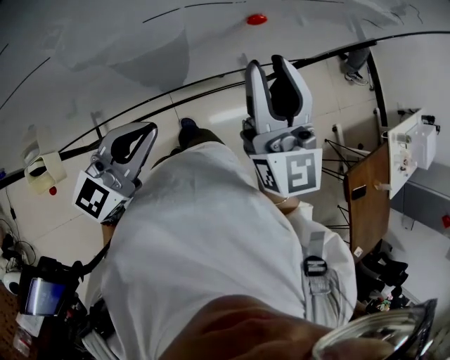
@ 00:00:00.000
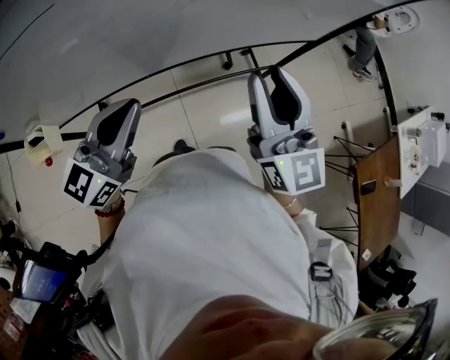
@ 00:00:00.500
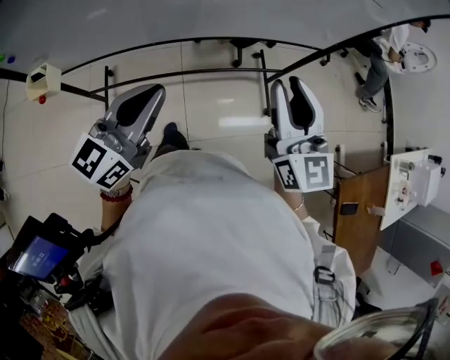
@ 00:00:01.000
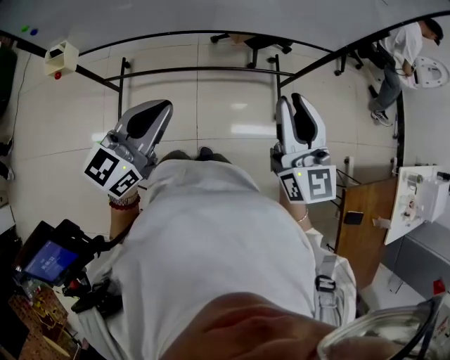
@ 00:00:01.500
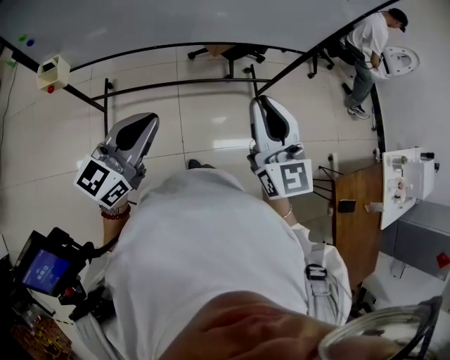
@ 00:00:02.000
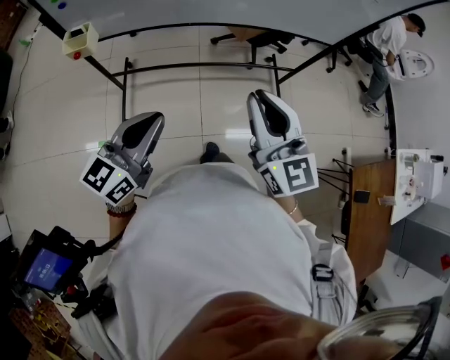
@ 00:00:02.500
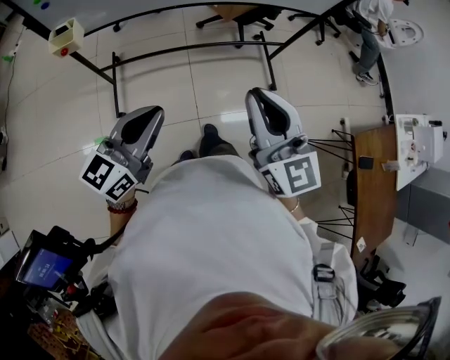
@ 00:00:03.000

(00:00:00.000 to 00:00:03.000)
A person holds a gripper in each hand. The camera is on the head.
00:00:00.000 - 00:00:01.500: The left gripper moves forward, roughly 5 cm, while the right gripper goes some 10 cm downward.
00:00:01.500 - 00:00:03.000: The two grippers go approximately 20 cm backward and to the left.

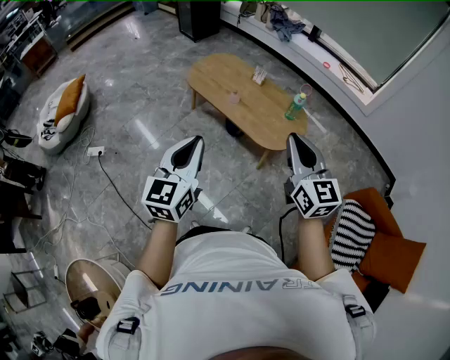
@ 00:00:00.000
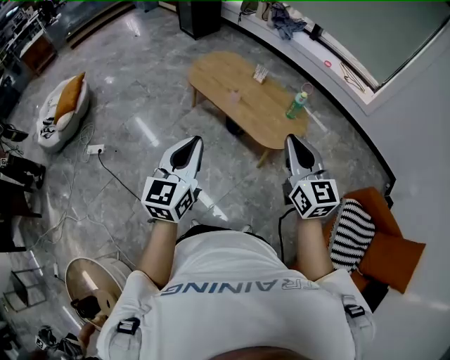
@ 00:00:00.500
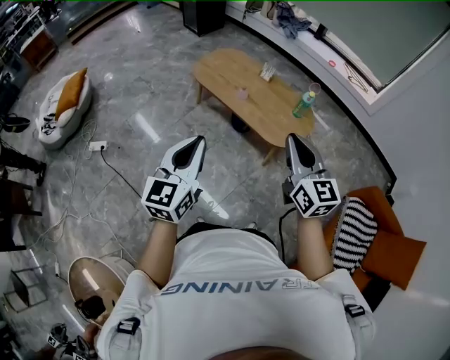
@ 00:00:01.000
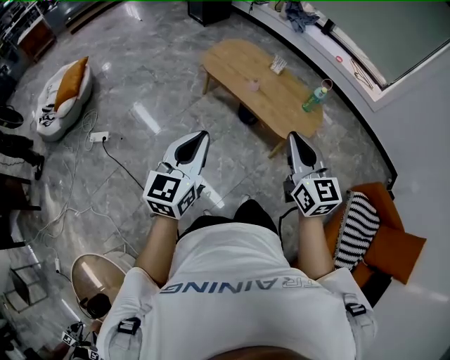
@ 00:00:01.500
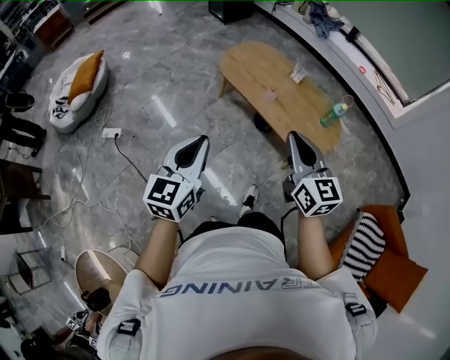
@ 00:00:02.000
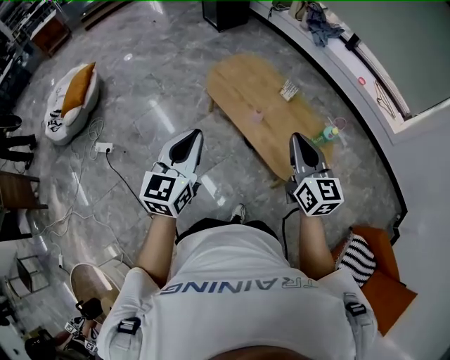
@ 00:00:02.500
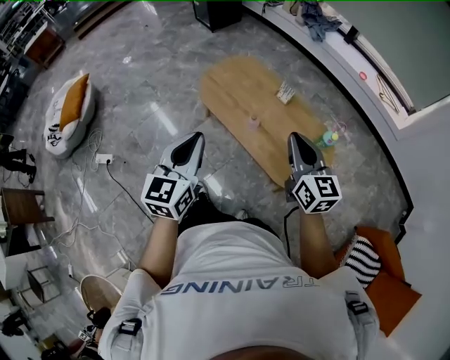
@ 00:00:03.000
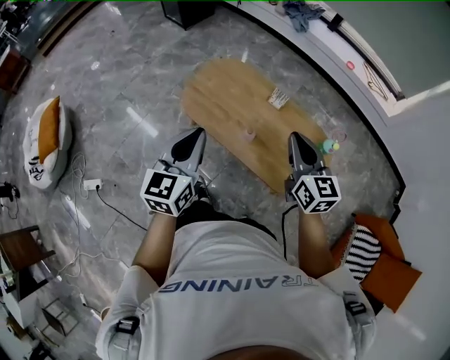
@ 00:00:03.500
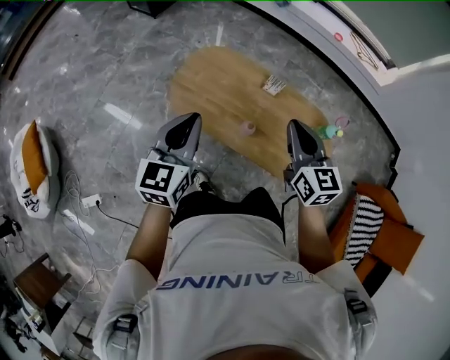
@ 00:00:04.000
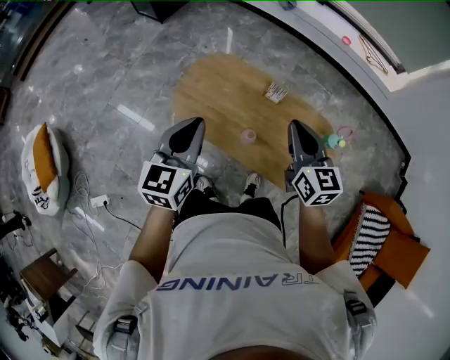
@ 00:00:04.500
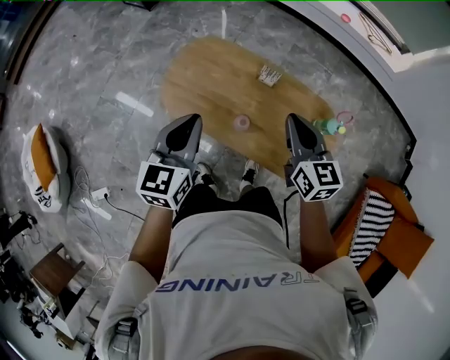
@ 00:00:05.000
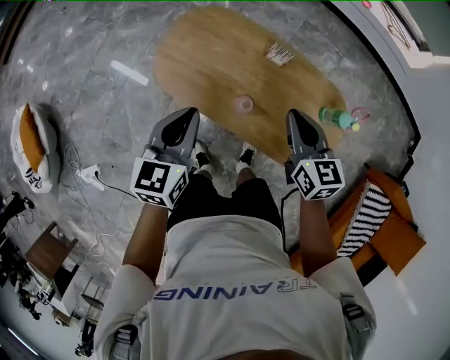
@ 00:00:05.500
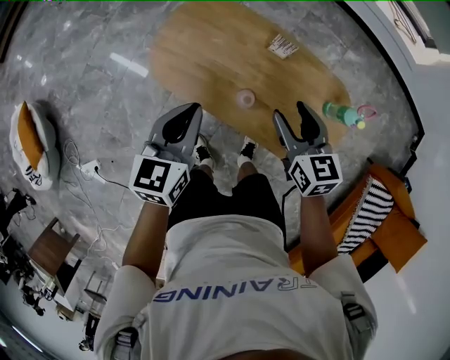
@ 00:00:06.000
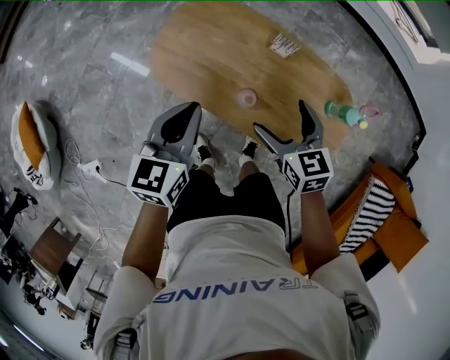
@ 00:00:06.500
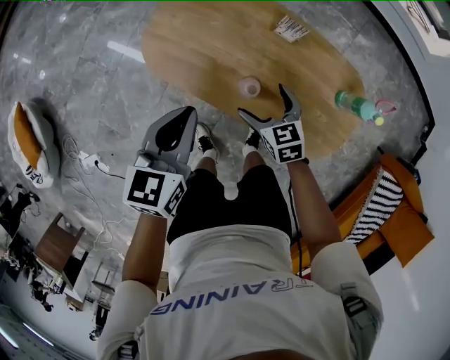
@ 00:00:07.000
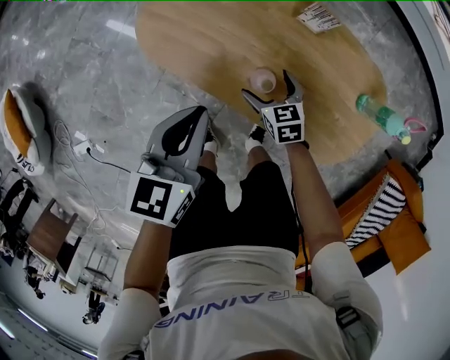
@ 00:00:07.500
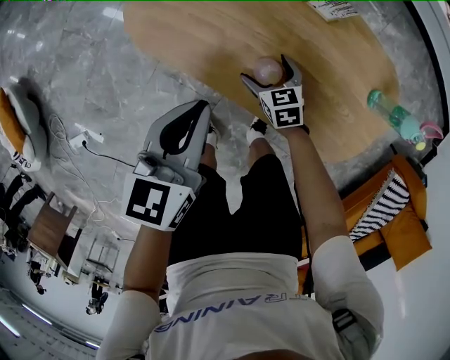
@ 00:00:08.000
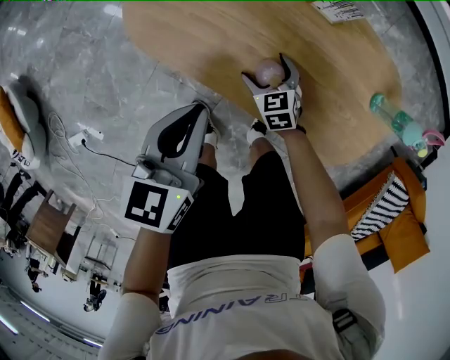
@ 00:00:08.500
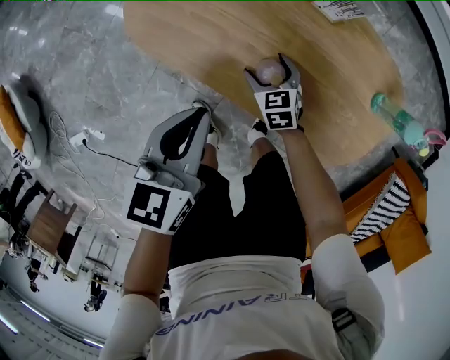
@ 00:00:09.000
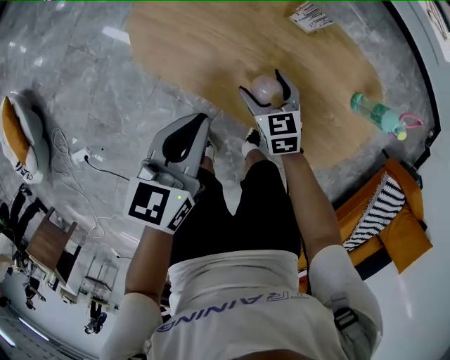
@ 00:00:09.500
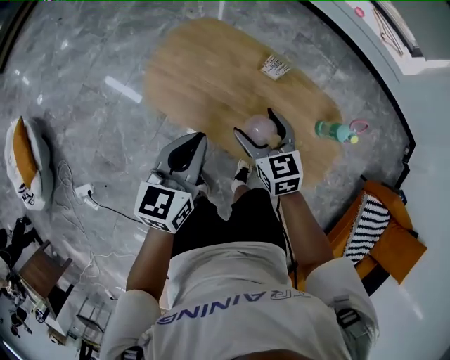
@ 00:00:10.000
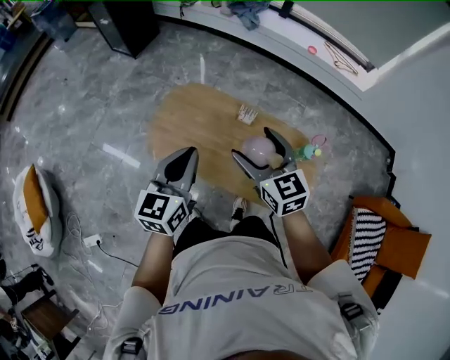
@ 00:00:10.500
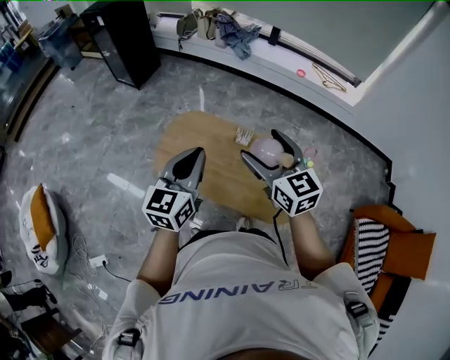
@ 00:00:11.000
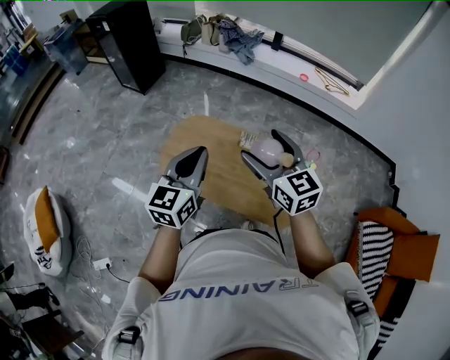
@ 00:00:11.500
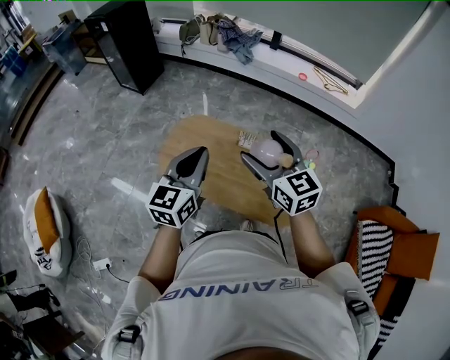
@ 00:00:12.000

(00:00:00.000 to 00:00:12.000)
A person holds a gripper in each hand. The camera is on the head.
00:00:00.000 - 00:00:02.000: The left gripper is displaced to the left and forward by approximately 15 cm; the right gripper moves to the left, forward and downward, roughly 20 cm.
00:00:02.000 - 00:00:04.000: The two grippers travel together, forward, roughly 50 cm. The right gripper swivels approximately 30 degrees.
00:00:04.000 - 00:00:06.000: The left gripper shifts roughly 20 cm downward, to the right and forward; the right gripper travels downward by approximately 15 cm, and opens up.
00:00:06.000 - 00:00:08.000: The right gripper heads downward, covering roughly 40 cm, changes its angle by about 20 degrees, and opens its fingers, while the left gripper moves downward, roughly 15 cm.
00:00:08.000 - 00:00:10.000: The right gripper is displaced upward by about 35 cm. The left gripper shifts roughly 15 cm upward.
00:00:10.000 - 00:00:12.000: The two grippers go roughly 25 cm upward. The left gripper rotates about 20 degrees. Meanwhile the right gripper changes its angle by about 20 degrees.

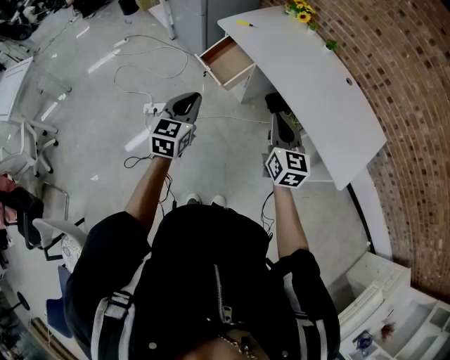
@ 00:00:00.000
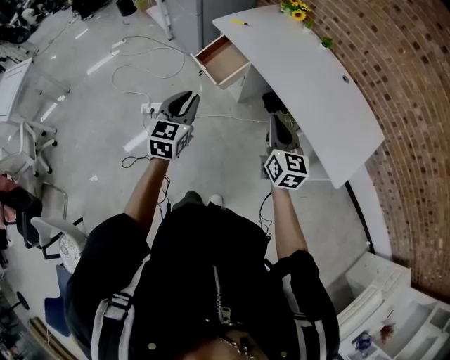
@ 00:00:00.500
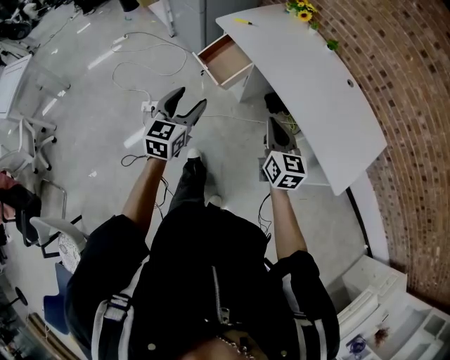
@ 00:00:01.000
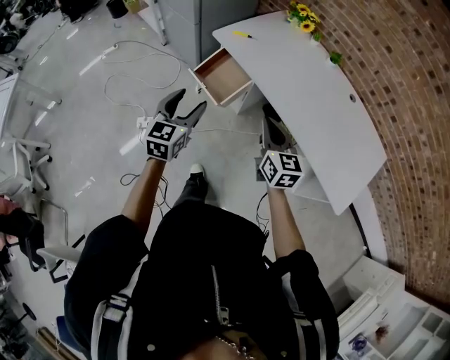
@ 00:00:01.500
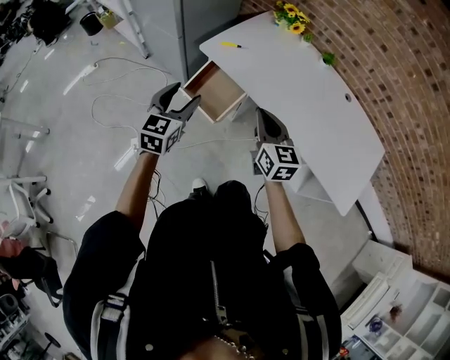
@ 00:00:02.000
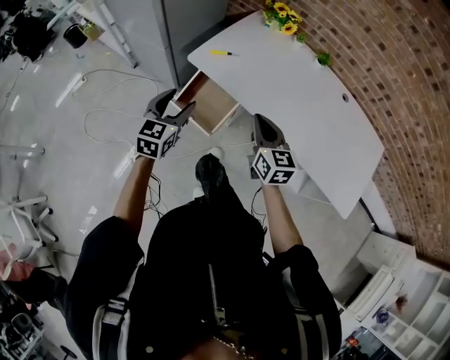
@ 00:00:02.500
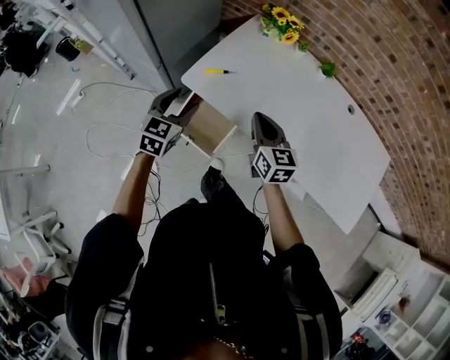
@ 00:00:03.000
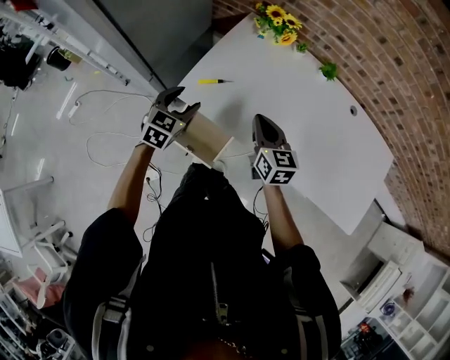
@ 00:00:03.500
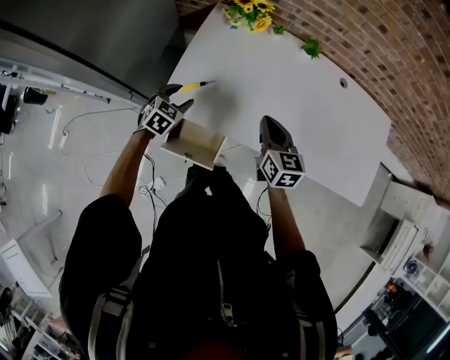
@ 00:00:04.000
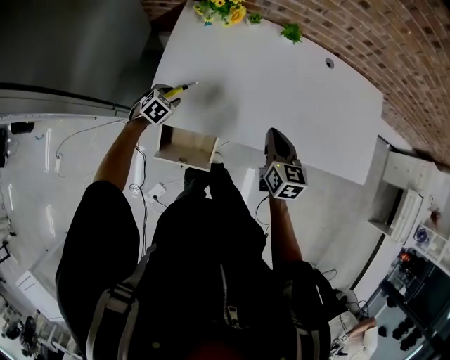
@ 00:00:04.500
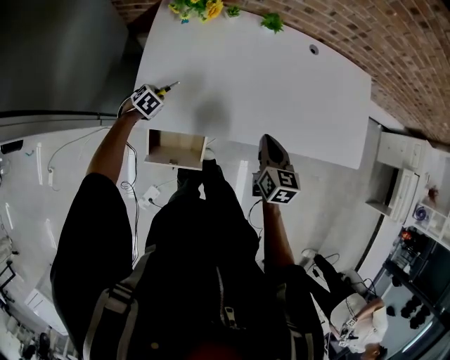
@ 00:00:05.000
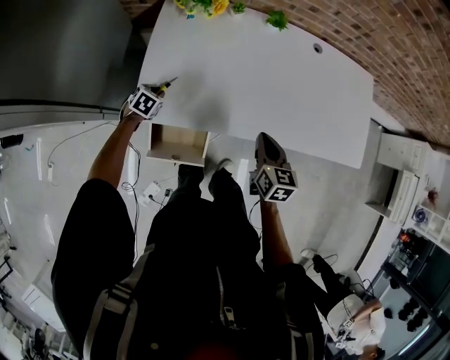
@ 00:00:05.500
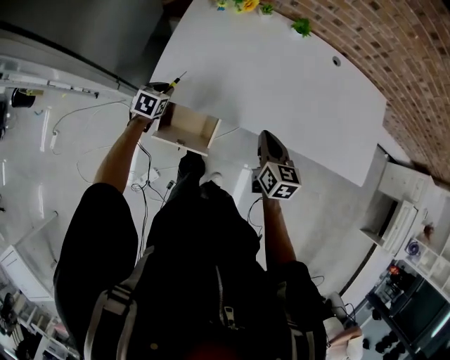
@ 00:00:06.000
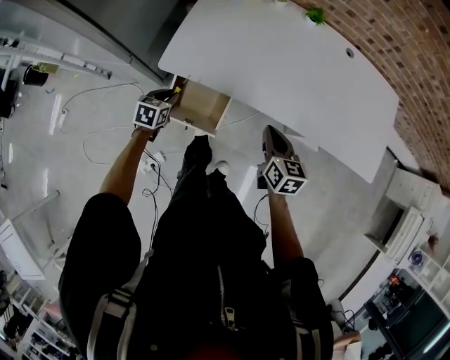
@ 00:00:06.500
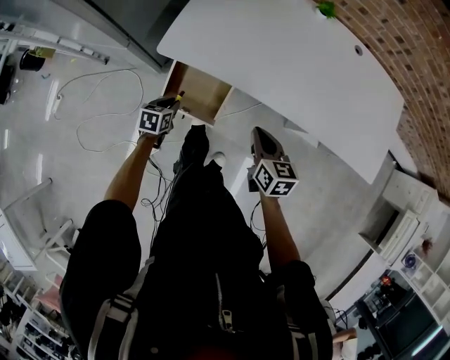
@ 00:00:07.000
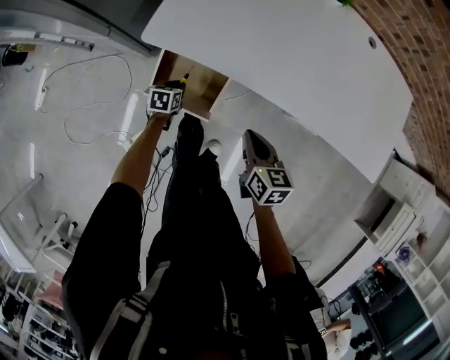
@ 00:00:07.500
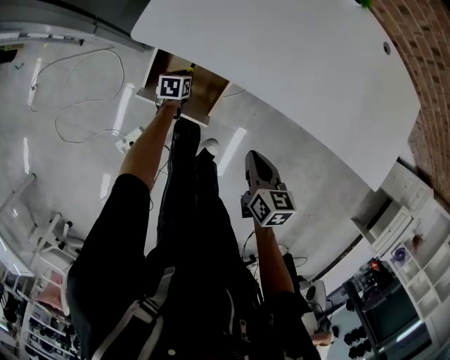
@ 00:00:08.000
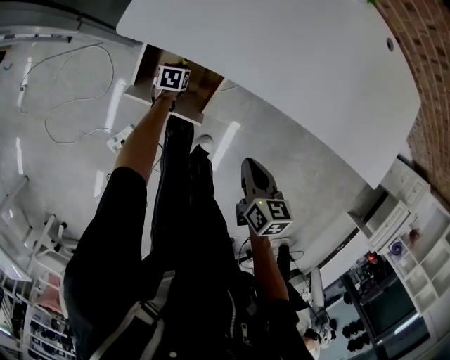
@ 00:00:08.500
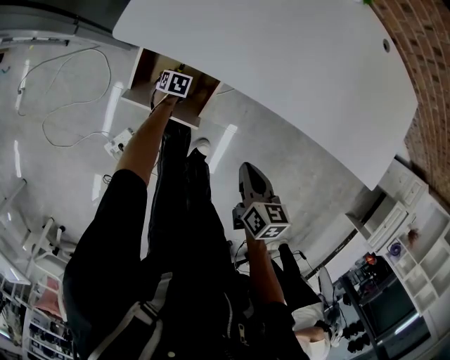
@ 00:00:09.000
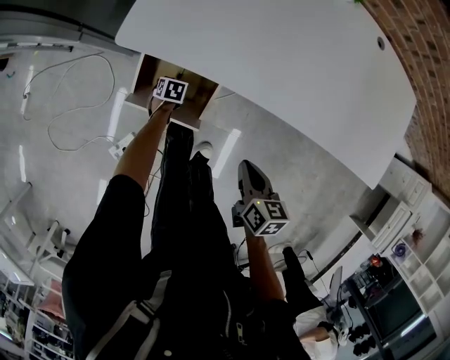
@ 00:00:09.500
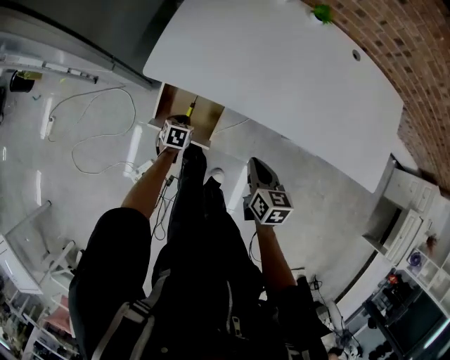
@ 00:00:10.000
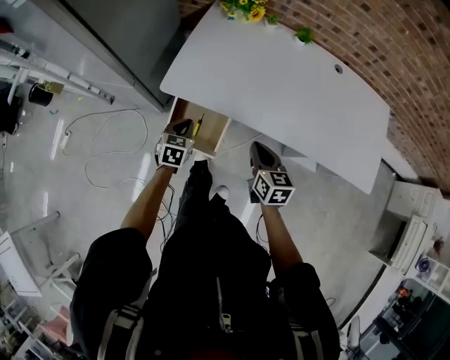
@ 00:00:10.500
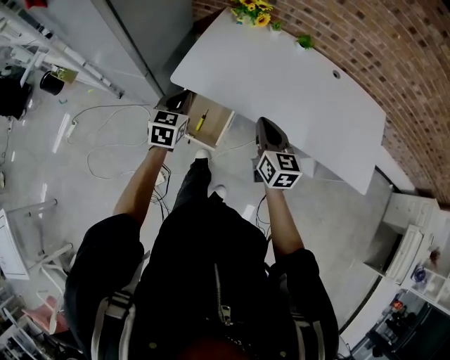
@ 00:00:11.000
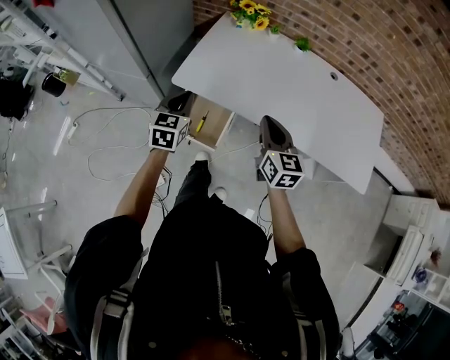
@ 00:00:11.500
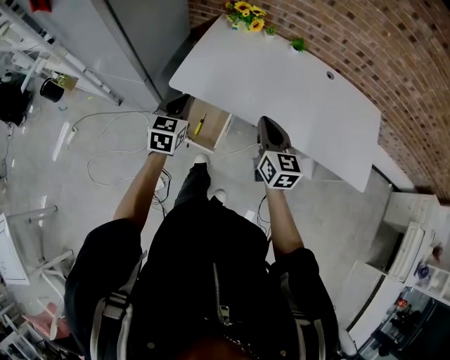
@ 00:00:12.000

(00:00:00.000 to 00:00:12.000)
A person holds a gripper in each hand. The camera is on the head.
00:00:00.000 - 00:00:02.000: The right gripper moves forward and to the left, roughly 25 cm; the left gripper travels forward by approximately 30 cm, and opens.
00:00:02.000 - 00:00:04.000: The right gripper moves about 25 cm, and rotates approximately 30 degrees. Meanwhile the left gripper changes place by some 40 cm, and turns by approximately 50 degrees.
00:00:04.000 - 00:00:06.000: The right gripper goes roughly 10 cm backward and to the right; the left gripper heads downward, covering approximately 10 cm, and closes its fingers.
00:00:06.000 - 00:00:08.000: The right gripper is displaced downward and backward by roughly 20 cm, and rotates some 20 degrees. Meanwhile the left gripper shifts some 25 cm downward, and swivels approximately 30 degrees.
00:00:08.000 - 00:00:10.000: The left gripper moves upward and backward, approximately 10 cm.
00:00:10.000 - 00:00:12.000: The left gripper is displaced upward by about 40 cm, and tilts its fingers roughly 40 degrees upward, while the right gripper goes some 20 cm upward, and changes its angle by some 30 degrees.
